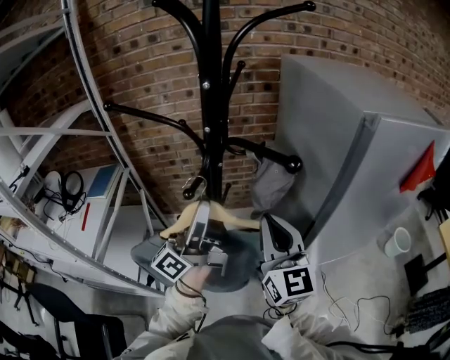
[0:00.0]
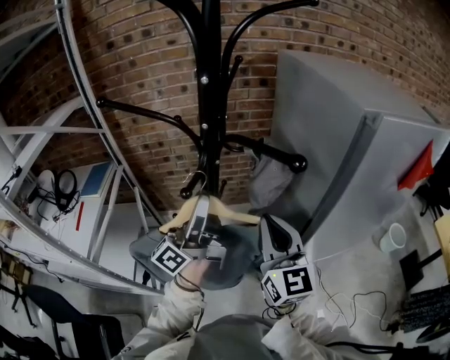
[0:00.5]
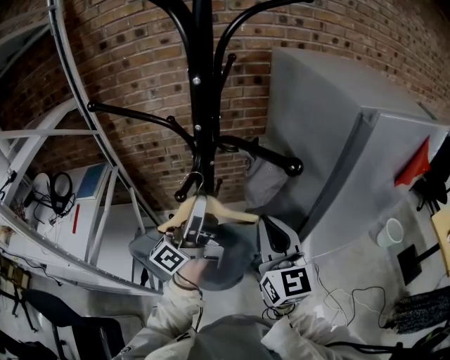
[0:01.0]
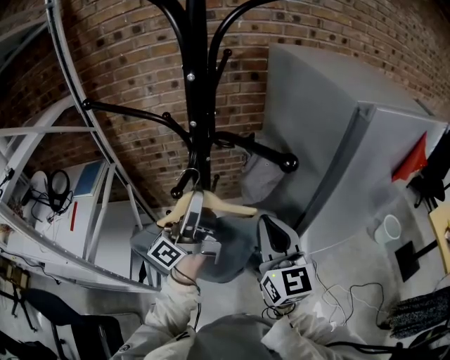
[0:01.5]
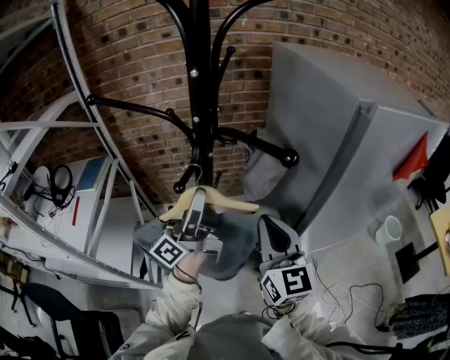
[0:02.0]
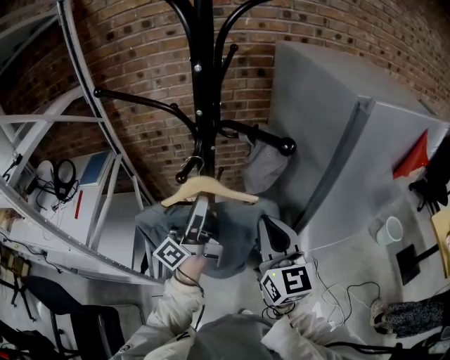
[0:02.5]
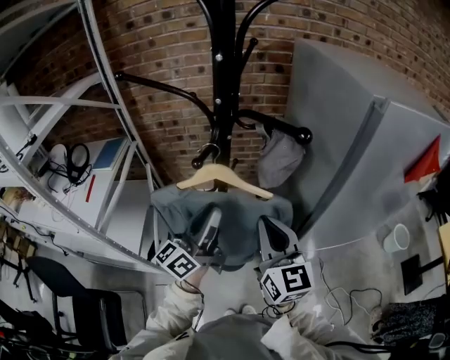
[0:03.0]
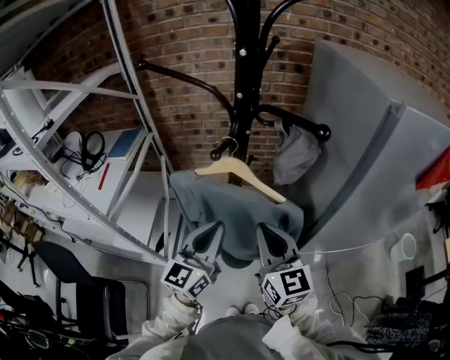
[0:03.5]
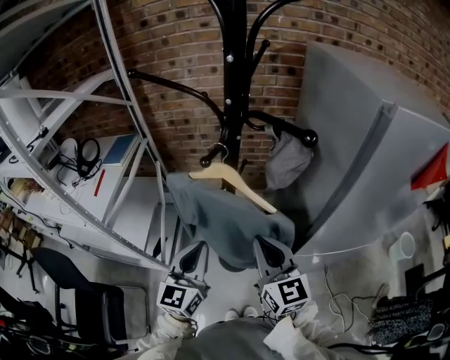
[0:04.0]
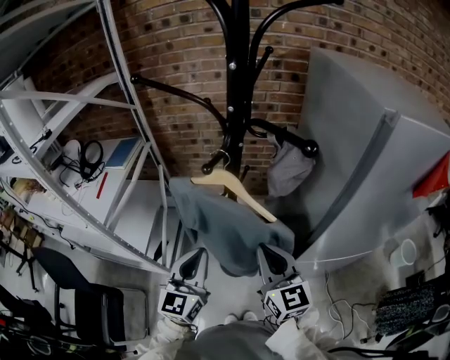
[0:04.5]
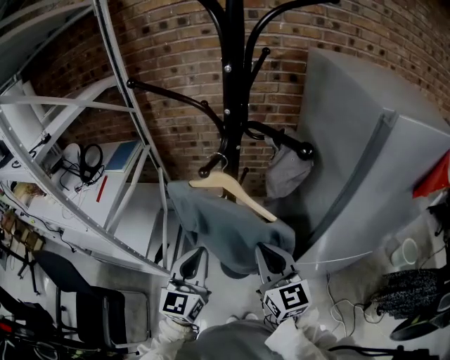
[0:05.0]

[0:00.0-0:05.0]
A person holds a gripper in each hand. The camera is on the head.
0:00.0 to 0:02.5: The left gripper travels downward by about 5 cm.
0:02.5 to 0:05.0: The right gripper travels downward by approximately 5 cm, while the left gripper shifts roughly 15 cm backward and downward, rotates around the line of its fingers by approximately 60 degrees, clockwise from behind, and closes its fingers.

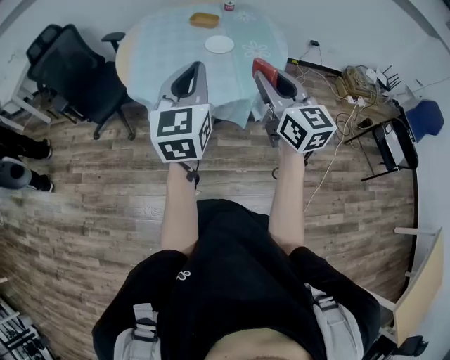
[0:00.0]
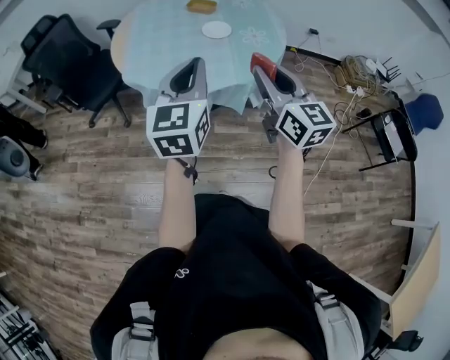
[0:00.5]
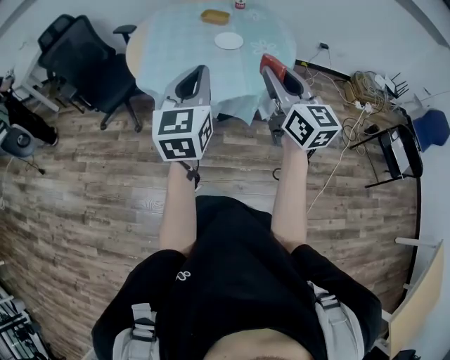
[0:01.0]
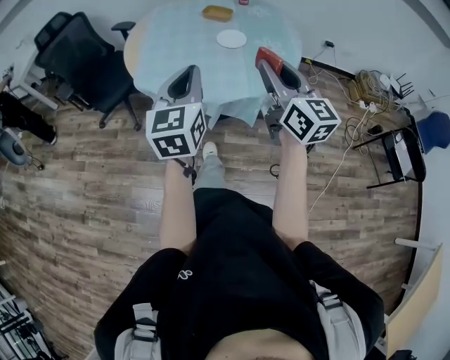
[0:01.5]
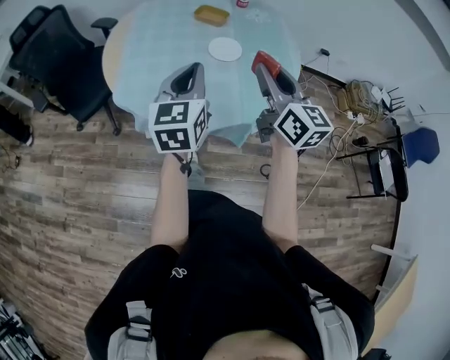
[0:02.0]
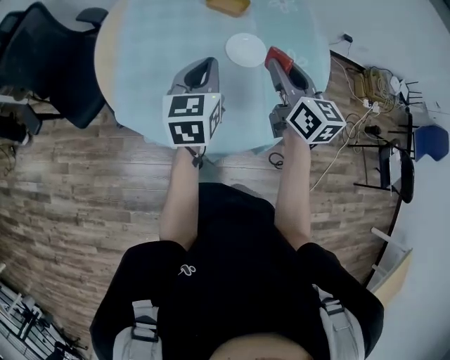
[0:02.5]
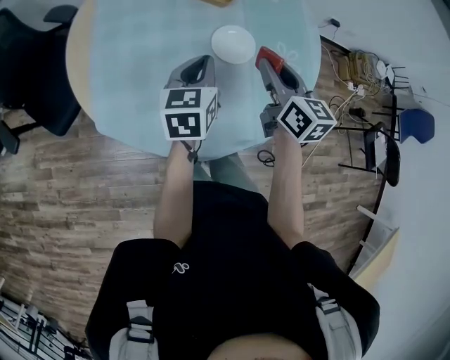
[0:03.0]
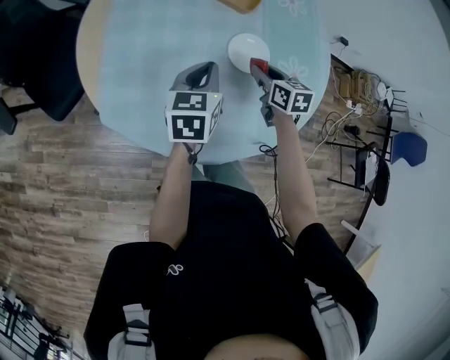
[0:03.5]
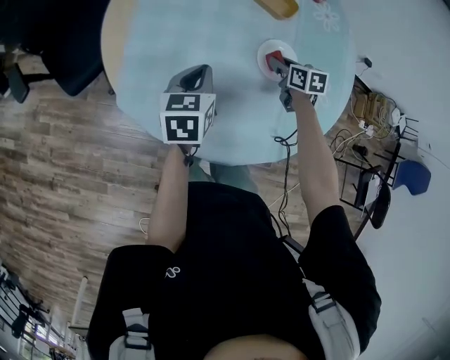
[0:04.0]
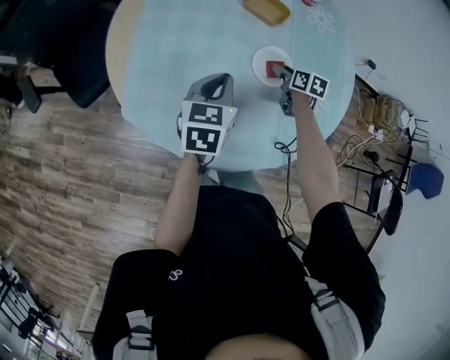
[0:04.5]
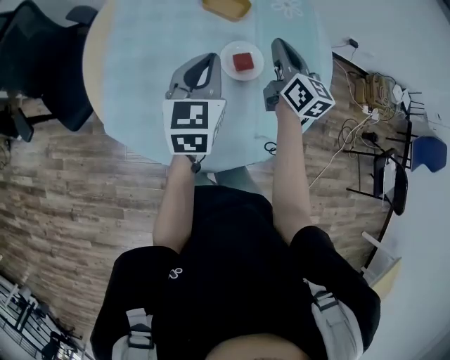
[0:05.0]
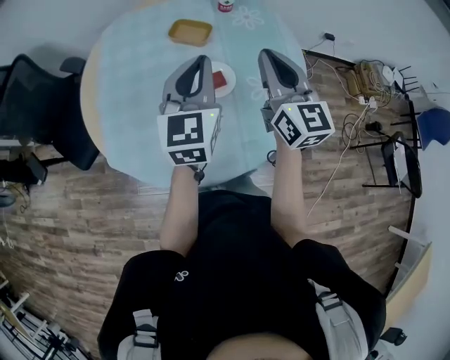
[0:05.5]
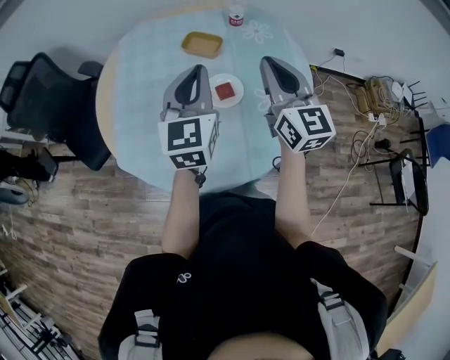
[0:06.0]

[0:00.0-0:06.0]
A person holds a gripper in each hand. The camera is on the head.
0:00.0 to 0:02.0: The right gripper travels forward by roughly 20 cm. Meanwhile the left gripper is displaced forward and downward by some 20 cm.
0:02.0 to 0:04.0: The right gripper moves forward and downward, some 50 cm, and tips its fingers downward by about 50 degrees. The left gripper goes about 35 cm forward, downward and to the left, and turns by some 30 degrees.
0:04.0 to 0:06.0: The left gripper goes about 30 cm upward and to the right, and turns by roughly 40 degrees, while the right gripper travels upward by roughly 35 cm, points its fingers some 50 degrees further upward, and closes its fingers.

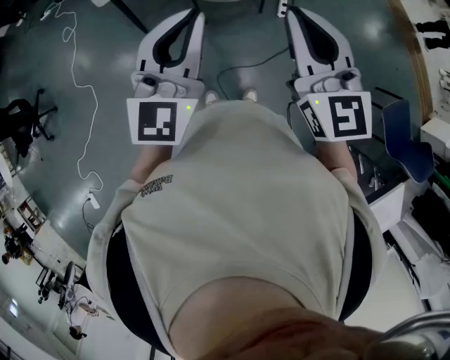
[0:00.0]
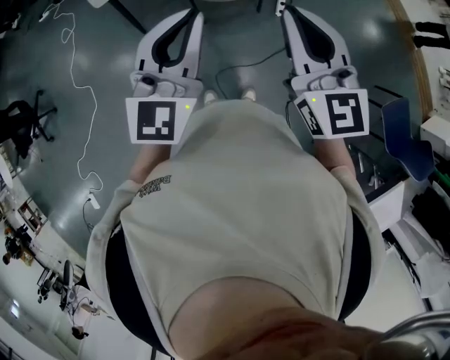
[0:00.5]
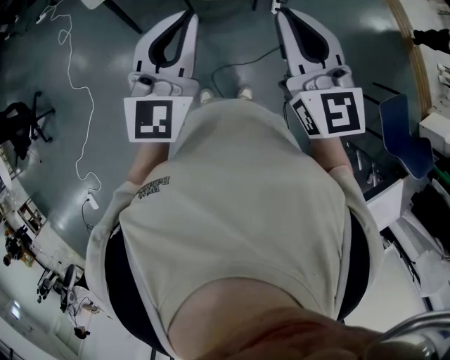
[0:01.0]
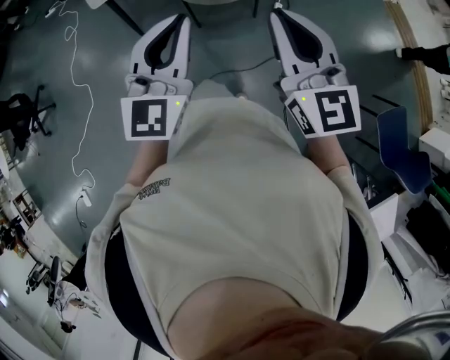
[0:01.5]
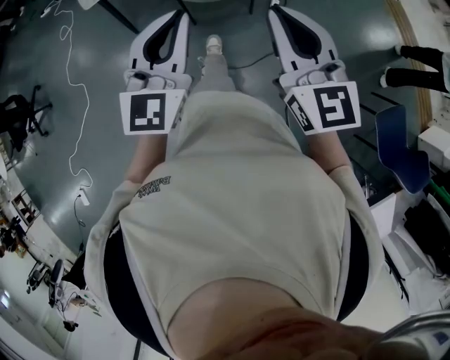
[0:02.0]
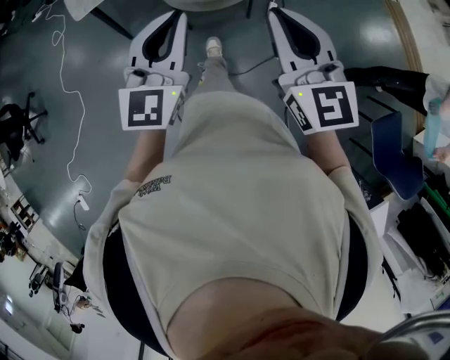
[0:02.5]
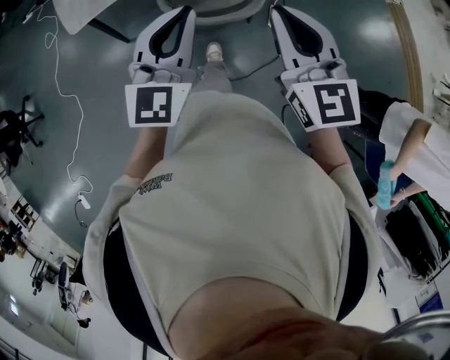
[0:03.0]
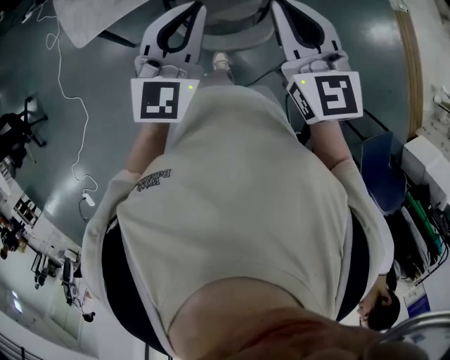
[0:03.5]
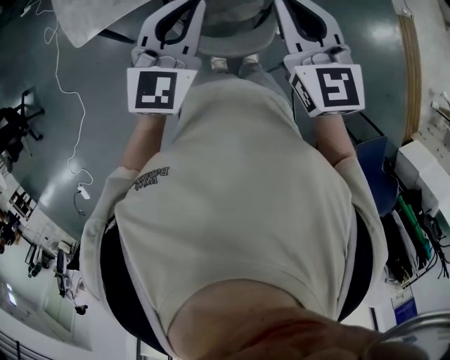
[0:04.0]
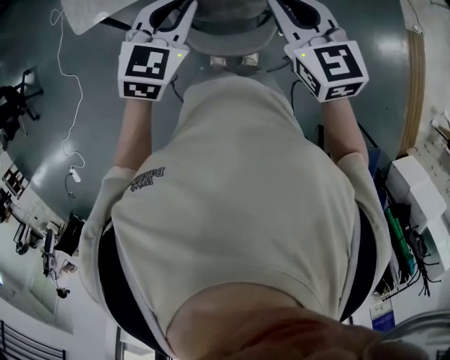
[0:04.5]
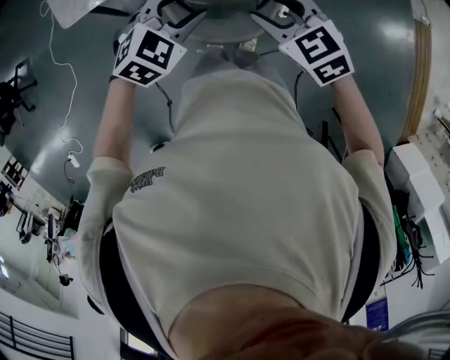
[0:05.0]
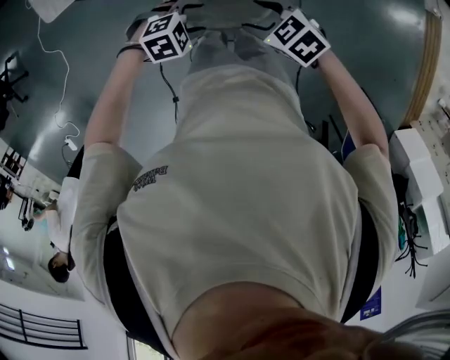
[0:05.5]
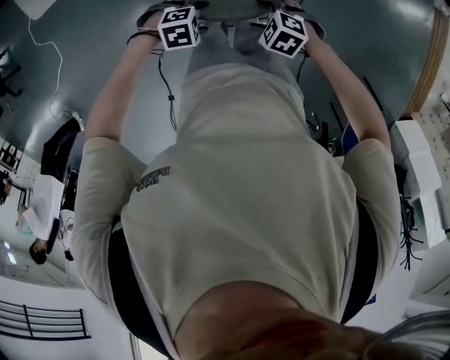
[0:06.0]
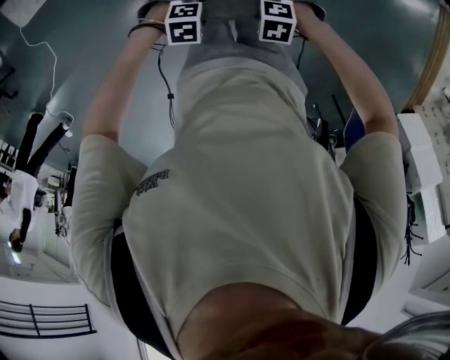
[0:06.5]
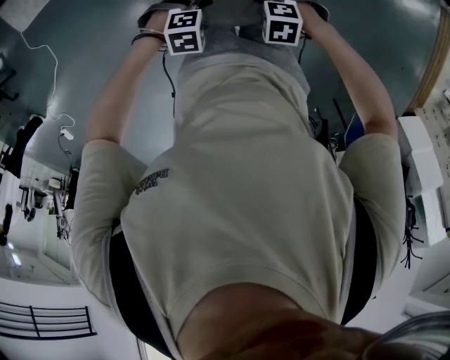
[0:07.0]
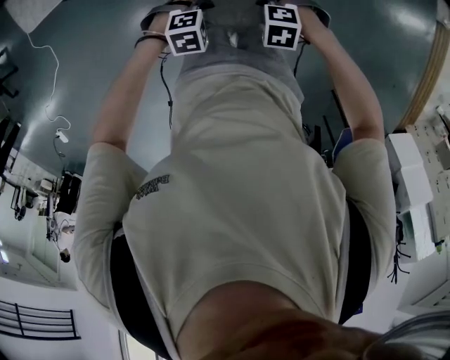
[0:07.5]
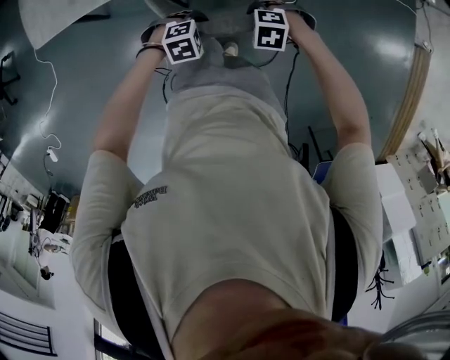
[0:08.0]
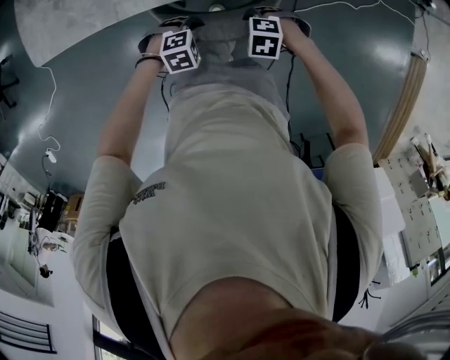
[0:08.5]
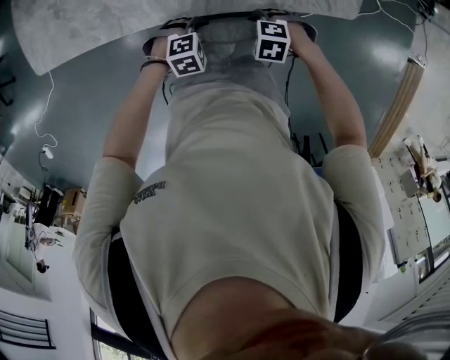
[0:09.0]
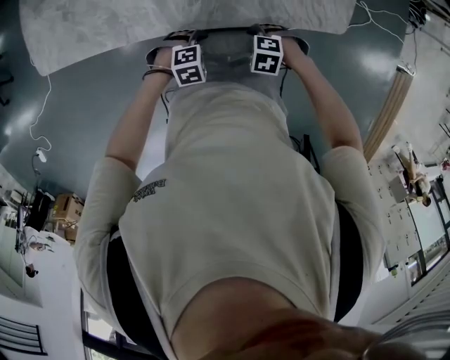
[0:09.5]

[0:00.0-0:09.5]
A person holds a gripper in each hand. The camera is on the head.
0:00.0 to 0:02.0: The left gripper heads to the right and downward, covering some 10 cm. The right gripper travels to the right by some 10 cm.
0:02.0 to 0:04.0: The pair of grippers is taken forward, about 40 cm.
0:04.0 to 0:05.5: The grippers both shift downward by roughly 30 cm. The right gripper tilts its fingers some 40 degrees downward, and opens its fingers; the left gripper tips its fingers downward by about 50 degrees, and opens its fingers.
0:05.5 to 0:07.5: The two grippers go approximately 15 cm downward. The right gripper changes its angle by some 40 degrees, and closes.
0:07.5 to 0:09.5: The right gripper shifts by some 30 cm; the left gripper moves approximately 25 cm.

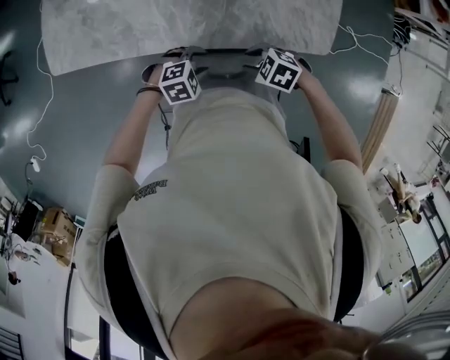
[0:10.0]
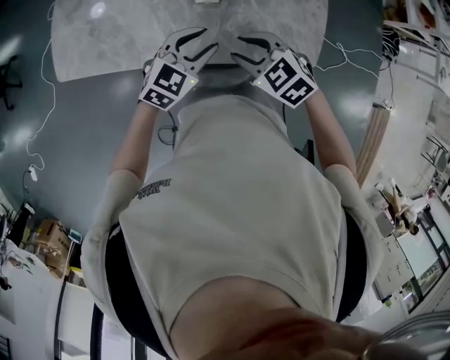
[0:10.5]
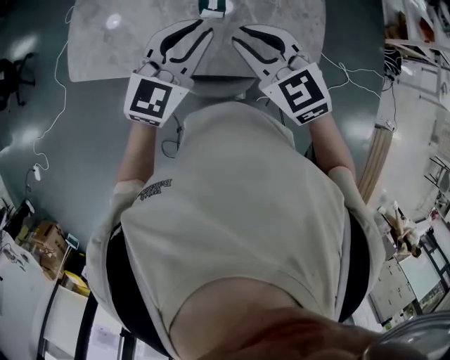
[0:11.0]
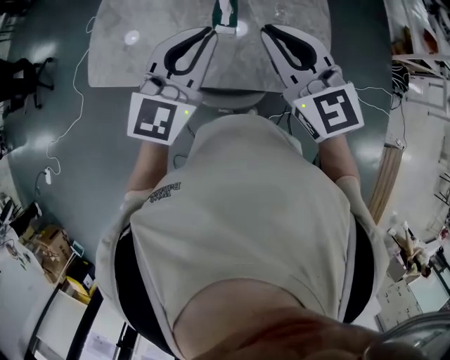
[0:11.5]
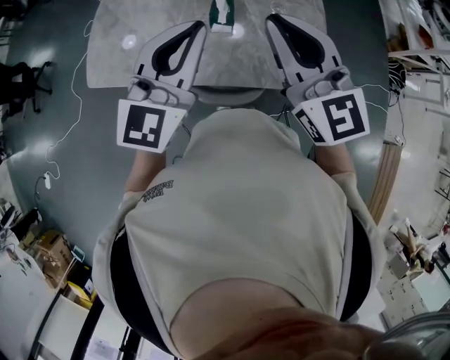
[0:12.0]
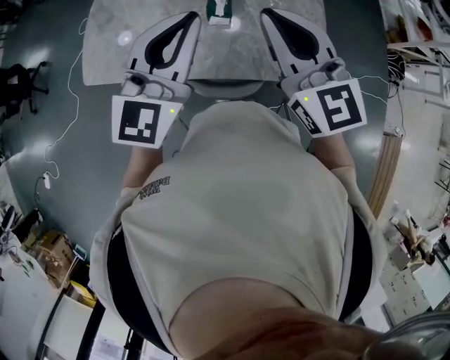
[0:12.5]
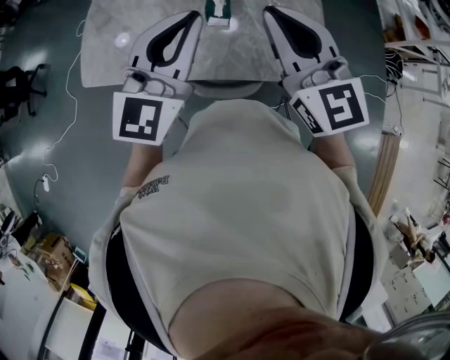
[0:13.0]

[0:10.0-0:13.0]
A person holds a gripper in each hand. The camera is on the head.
0:10.0 to 0:11.5: Both grippers travel together upward, roughly 40 cm. The left gripper points its fingers about 60 degrees further upward, and closes its fingers; the right gripper tips its fingers upward by some 60 degrees, and closes its fingers.
0:11.5 to 0:13.0: The grippers stay close to where they were, moving slightly.

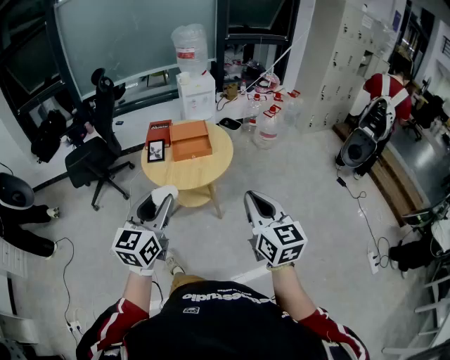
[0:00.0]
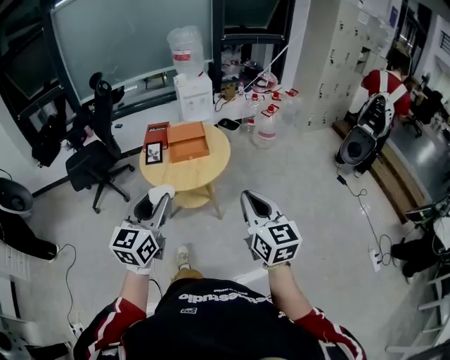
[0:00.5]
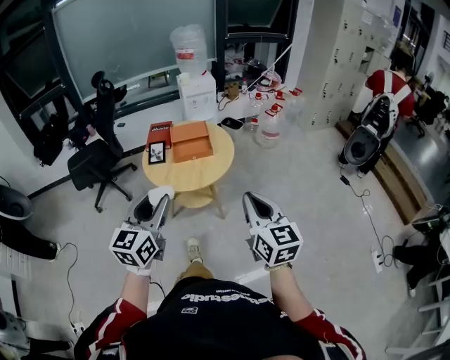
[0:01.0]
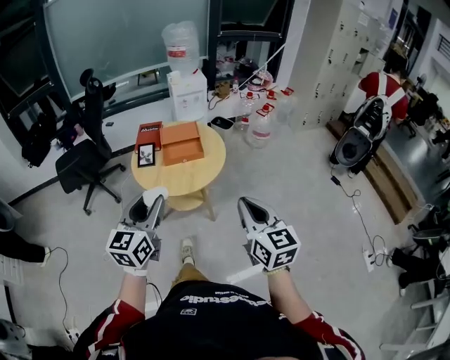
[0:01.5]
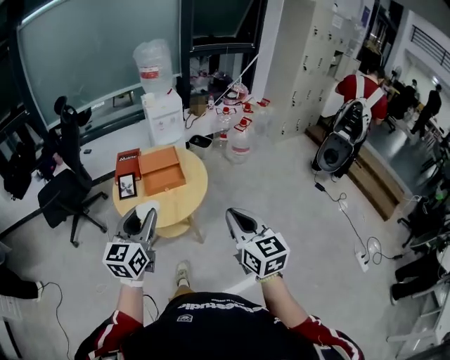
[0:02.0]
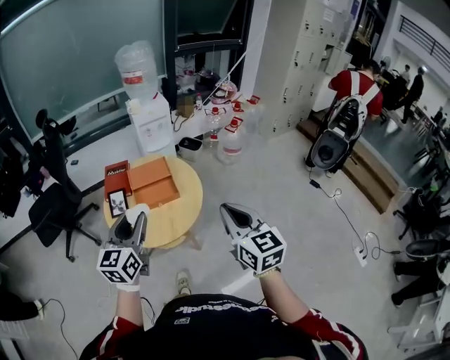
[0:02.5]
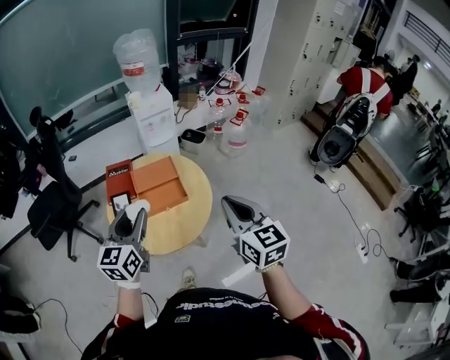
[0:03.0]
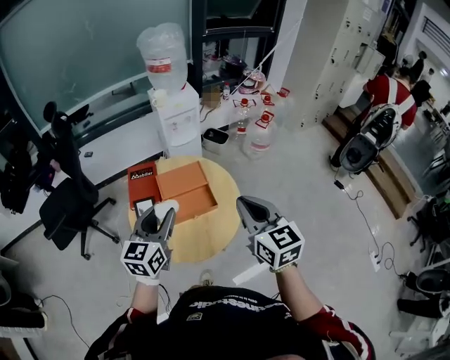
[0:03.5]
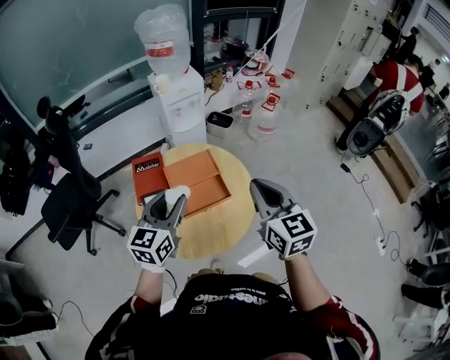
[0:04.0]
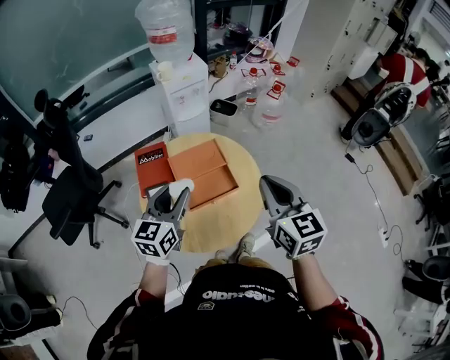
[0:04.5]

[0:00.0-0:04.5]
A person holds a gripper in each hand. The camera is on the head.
0:00.0 to 0:02.0: The two grippers go about 15 cm forward.
0:02.0 to 0:04.5: The left gripper heads forward, covering about 35 cm; the right gripper moves forward and to the left, roughly 35 cm.
